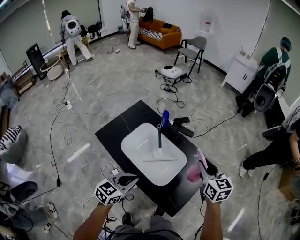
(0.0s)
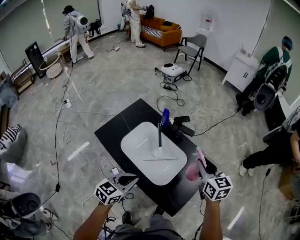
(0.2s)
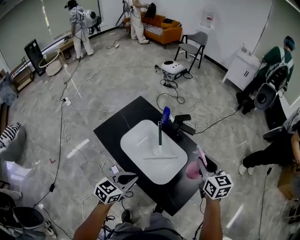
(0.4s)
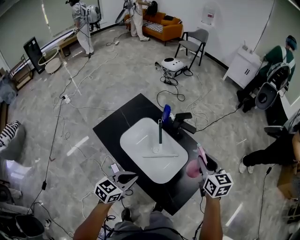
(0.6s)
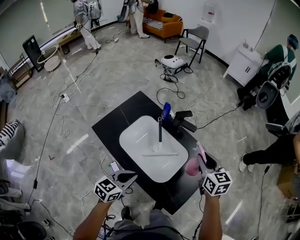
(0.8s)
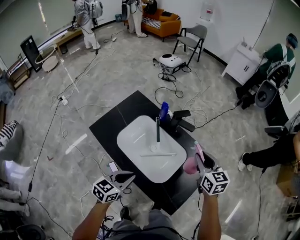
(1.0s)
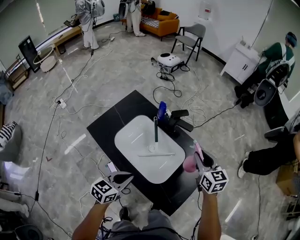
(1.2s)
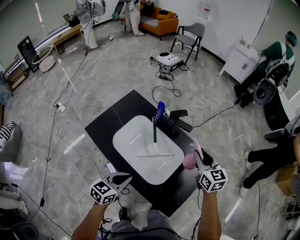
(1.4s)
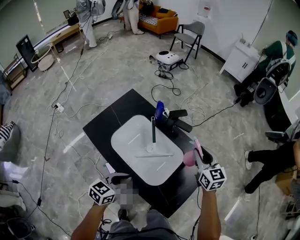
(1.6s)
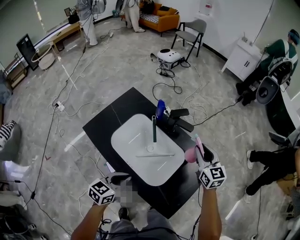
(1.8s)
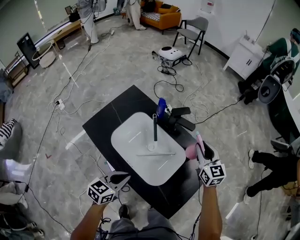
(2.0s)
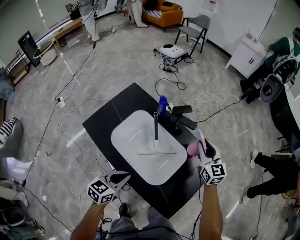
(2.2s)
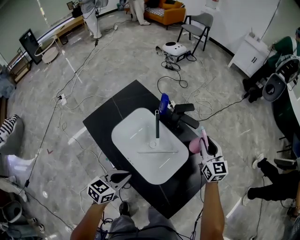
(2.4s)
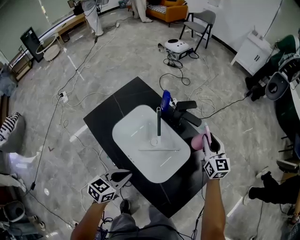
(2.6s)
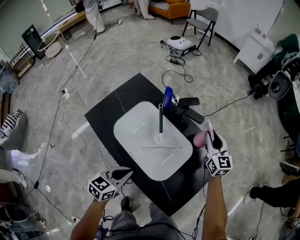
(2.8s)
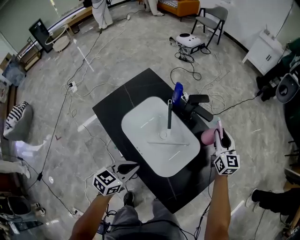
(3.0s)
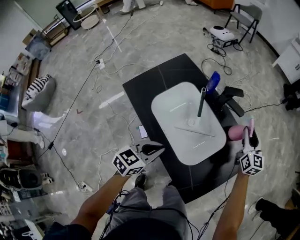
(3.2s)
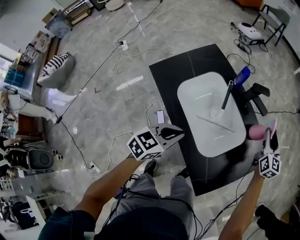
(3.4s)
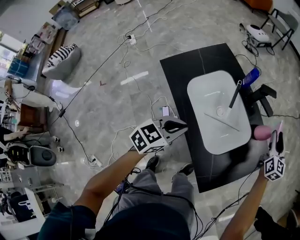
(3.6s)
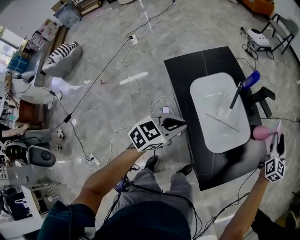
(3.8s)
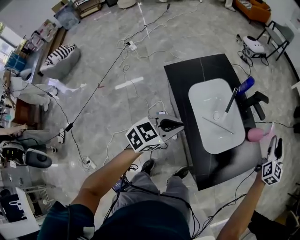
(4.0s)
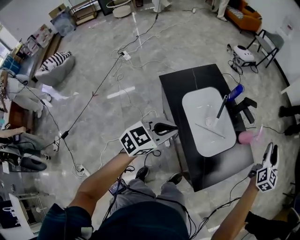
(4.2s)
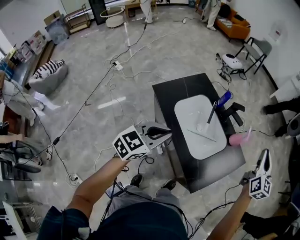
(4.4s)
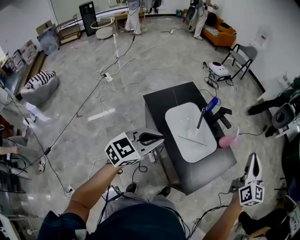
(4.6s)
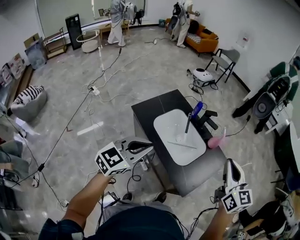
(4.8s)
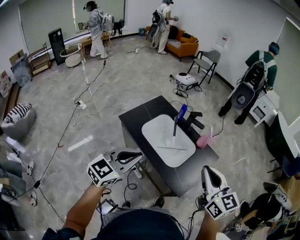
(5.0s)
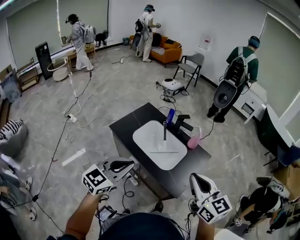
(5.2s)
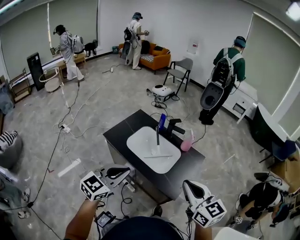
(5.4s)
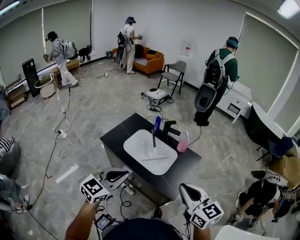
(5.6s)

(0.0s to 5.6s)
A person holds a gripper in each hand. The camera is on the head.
0.0s - 1.4s: The right gripper shifts about 10 cm forward and downward; the left gripper is displaced downward by approximately 5 cm.
1.4s - 2.8s: The left gripper moves downward, approximately 5 cm, while the right gripper travels forward and downward by roughly 15 cm.
2.8s - 4.2s: The left gripper travels upward, backward and to the left by about 20 cm; the right gripper heads upward and backward, covering roughly 20 cm.
4.2s - 5.6s: The right gripper goes approximately 40 cm backward, rotates some 20 degrees, and closes up; the left gripper is displaced backward and upward by roughly 20 cm, and changes its angle by roughly 20 degrees.

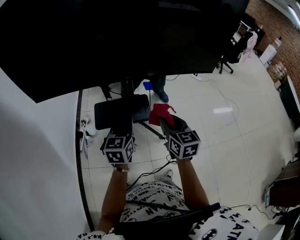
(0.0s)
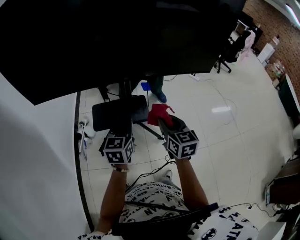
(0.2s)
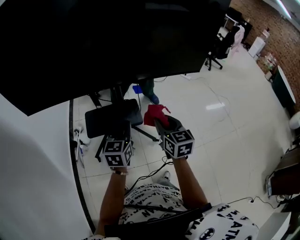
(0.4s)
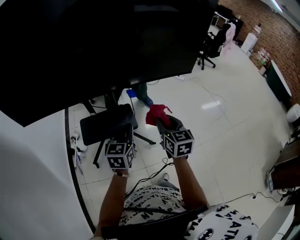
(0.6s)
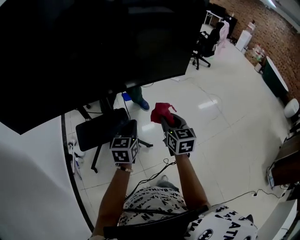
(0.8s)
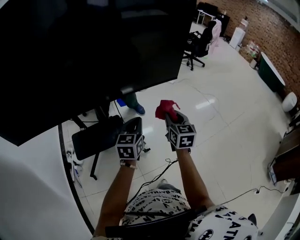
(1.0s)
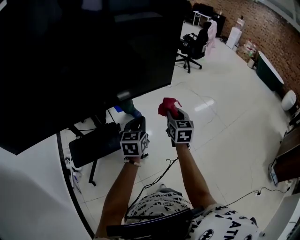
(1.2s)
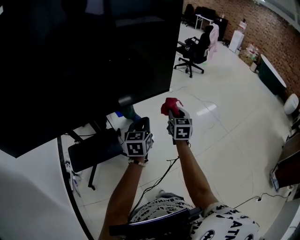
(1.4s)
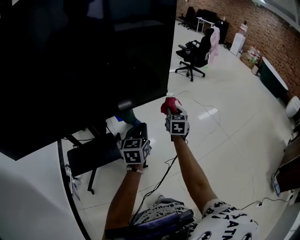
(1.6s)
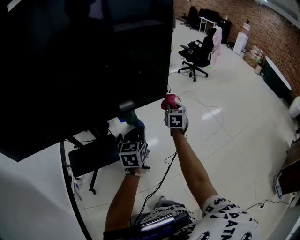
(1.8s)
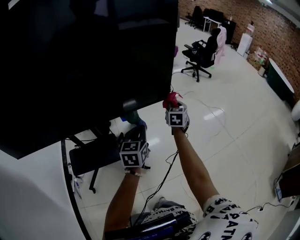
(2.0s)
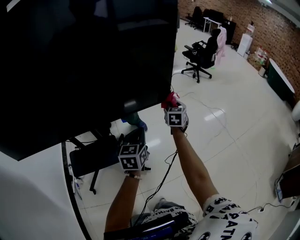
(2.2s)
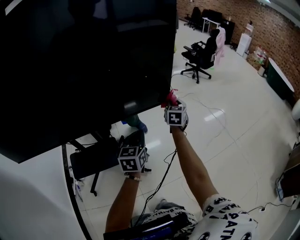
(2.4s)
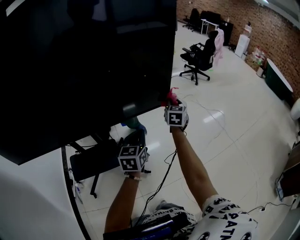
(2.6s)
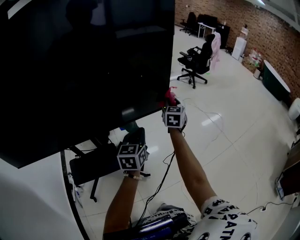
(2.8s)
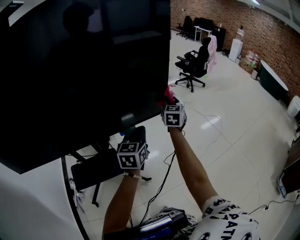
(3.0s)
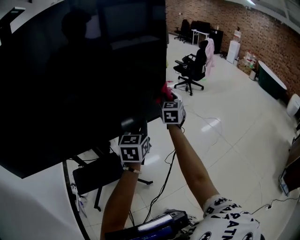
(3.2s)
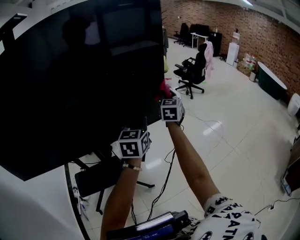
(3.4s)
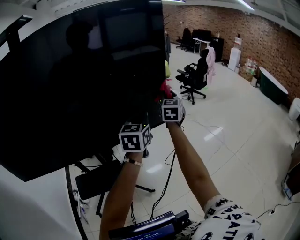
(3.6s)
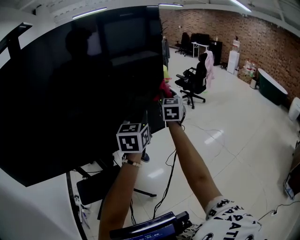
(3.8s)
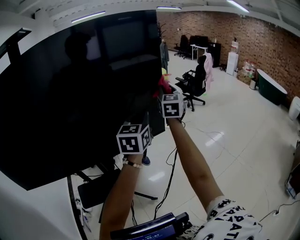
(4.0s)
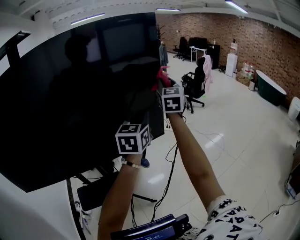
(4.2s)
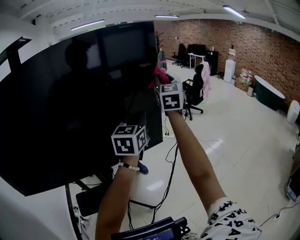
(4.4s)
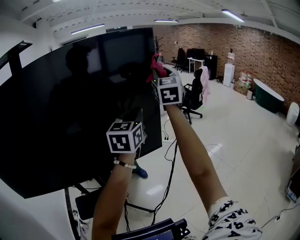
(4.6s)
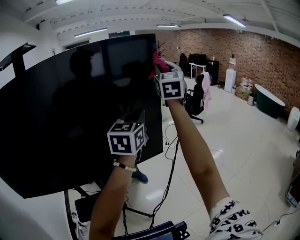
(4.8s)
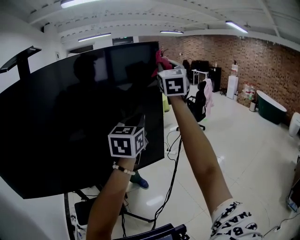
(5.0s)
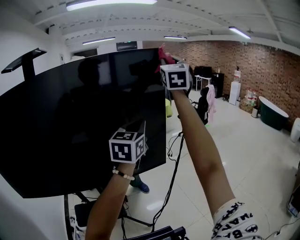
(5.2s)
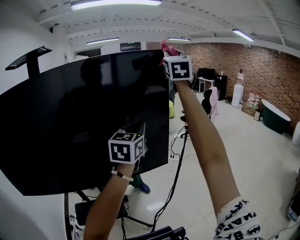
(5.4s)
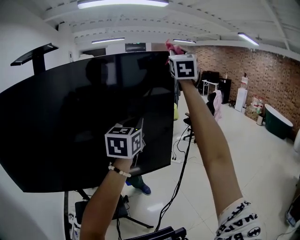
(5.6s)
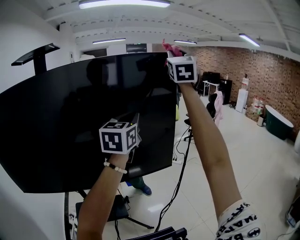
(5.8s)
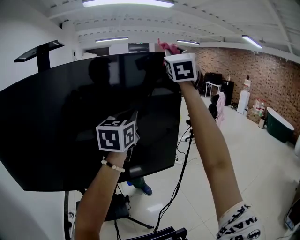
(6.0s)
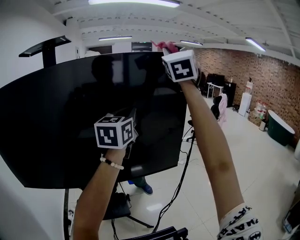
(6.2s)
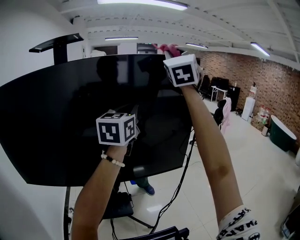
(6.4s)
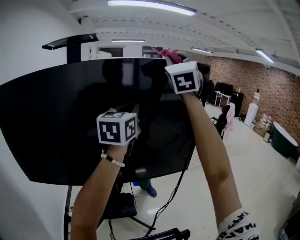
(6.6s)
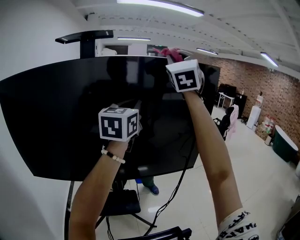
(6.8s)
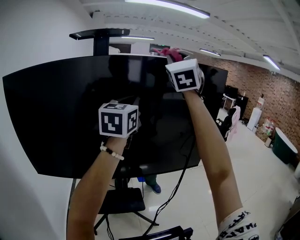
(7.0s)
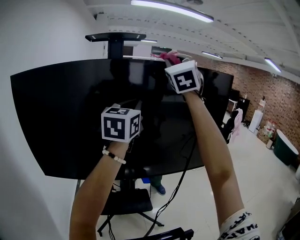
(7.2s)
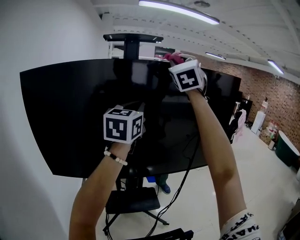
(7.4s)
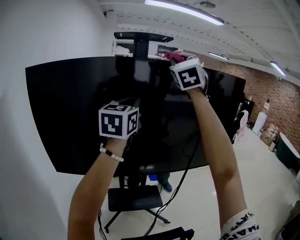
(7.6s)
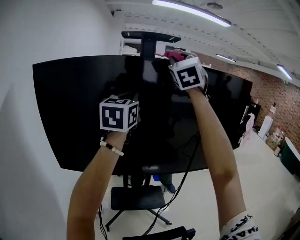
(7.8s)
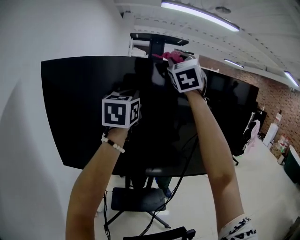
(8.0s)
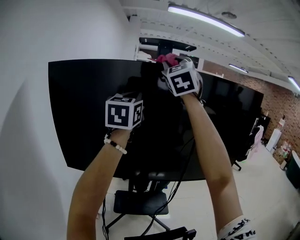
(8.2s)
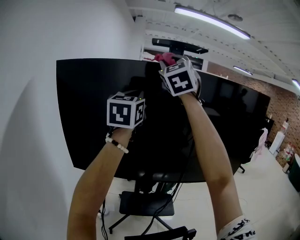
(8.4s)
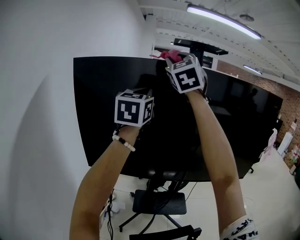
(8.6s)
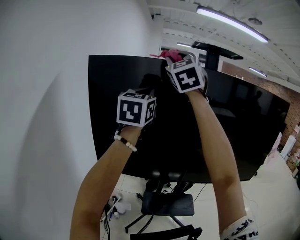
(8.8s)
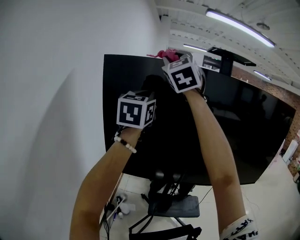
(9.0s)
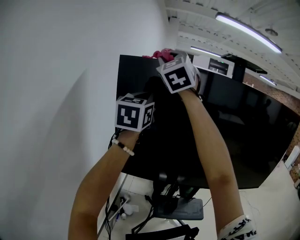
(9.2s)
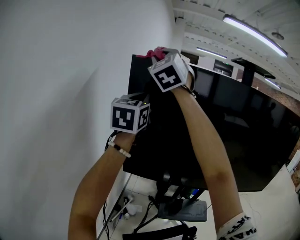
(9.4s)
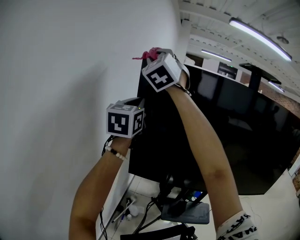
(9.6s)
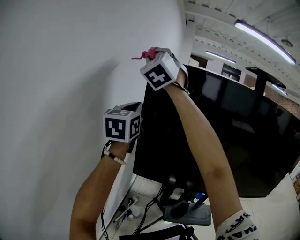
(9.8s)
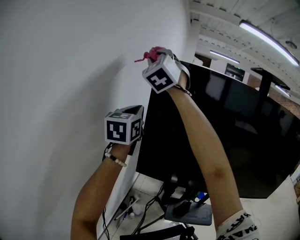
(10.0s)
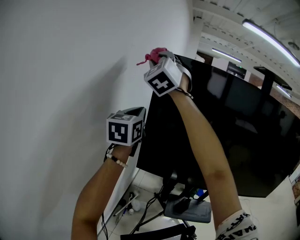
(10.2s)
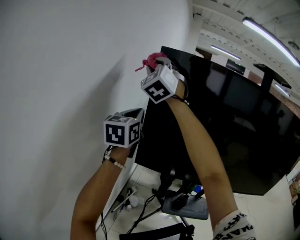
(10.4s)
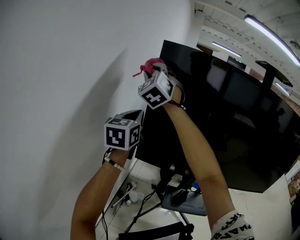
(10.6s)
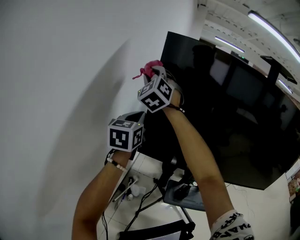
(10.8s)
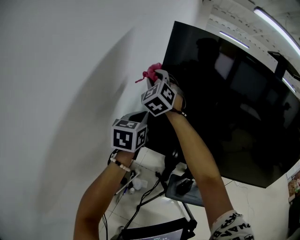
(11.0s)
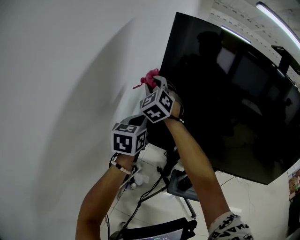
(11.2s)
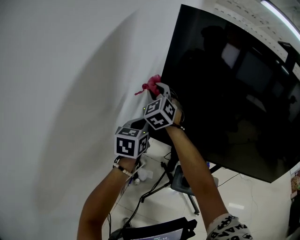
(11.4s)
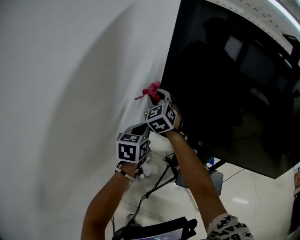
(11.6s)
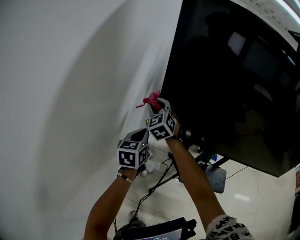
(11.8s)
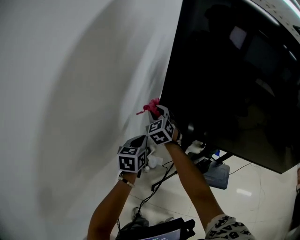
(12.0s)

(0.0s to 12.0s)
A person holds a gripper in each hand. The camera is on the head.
0.0s - 1.6s: The left gripper shifts by approximately 35 cm, while the right gripper shifts by roughly 40 cm, and turns by approximately 30 degrees.
1.6s - 3.0s: The left gripper goes approximately 5 cm upward, while the right gripper shifts some 15 cm upward and forward.
3.0s - 4.4s: The grippers both shift upward by roughly 25 cm. The right gripper changes its angle by about 20 degrees.
4.4s - 6.0s: The right gripper moves upward, approximately 25 cm, while the left gripper shifts about 15 cm upward and to the left.
6.0s - 7.6s: The two grippers travel together, to the left, roughly 40 cm.
7.6s - 9.0s: Both grippers move to the left, some 35 cm. The right gripper turns by approximately 20 degrees.
9.0s - 10.4s: The grippers both shift to the left and downward by about 25 cm.
10.4s - 12.0s: The grippers both shift downward by some 40 cm. The right gripper swivels roughly 30 degrees; the left gripper changes its angle by approximately 30 degrees.

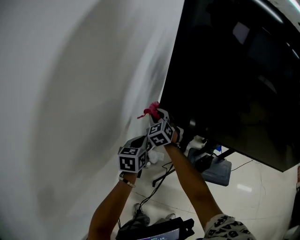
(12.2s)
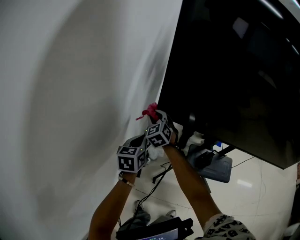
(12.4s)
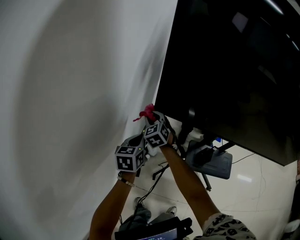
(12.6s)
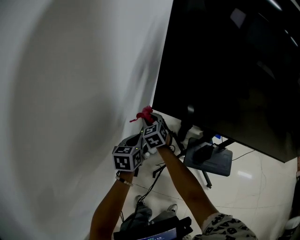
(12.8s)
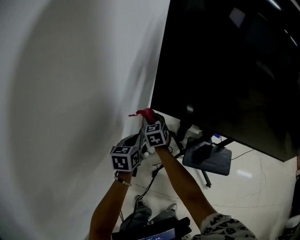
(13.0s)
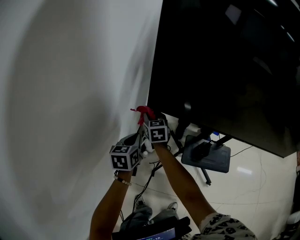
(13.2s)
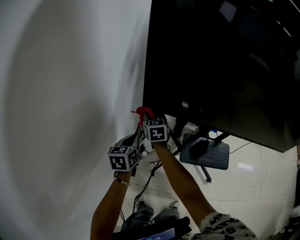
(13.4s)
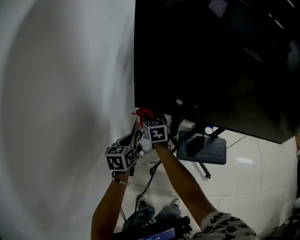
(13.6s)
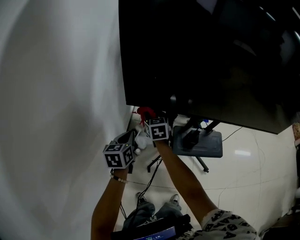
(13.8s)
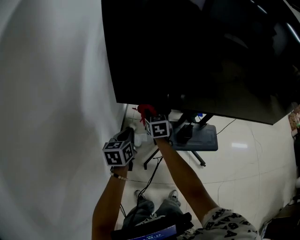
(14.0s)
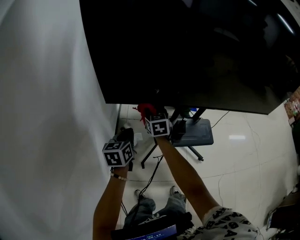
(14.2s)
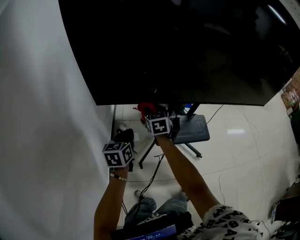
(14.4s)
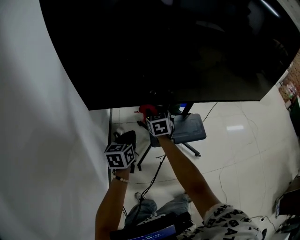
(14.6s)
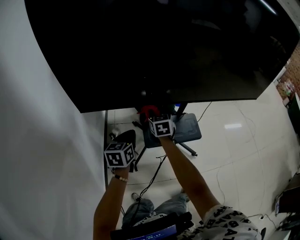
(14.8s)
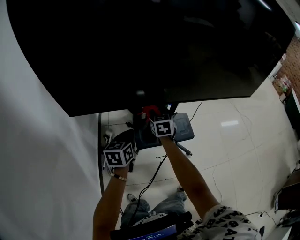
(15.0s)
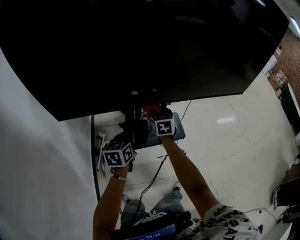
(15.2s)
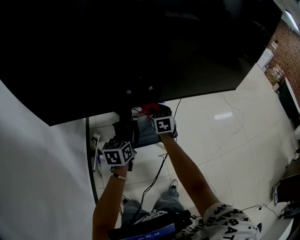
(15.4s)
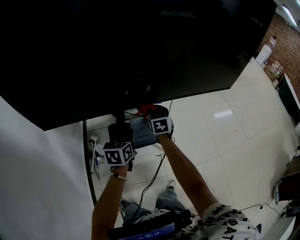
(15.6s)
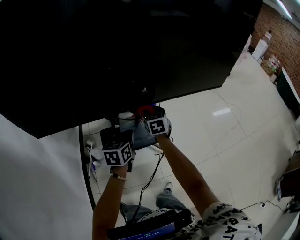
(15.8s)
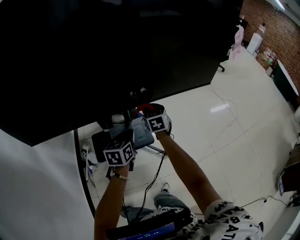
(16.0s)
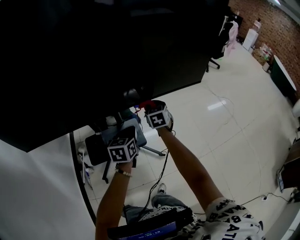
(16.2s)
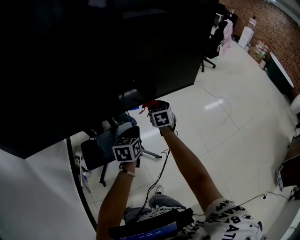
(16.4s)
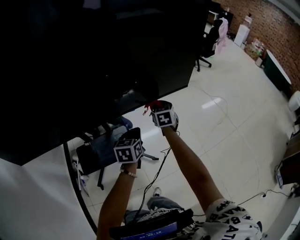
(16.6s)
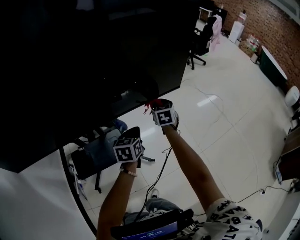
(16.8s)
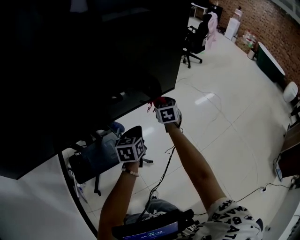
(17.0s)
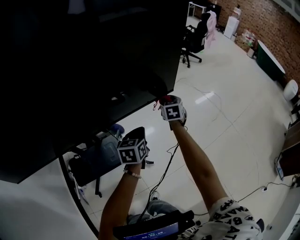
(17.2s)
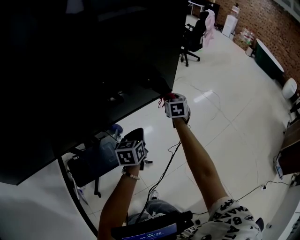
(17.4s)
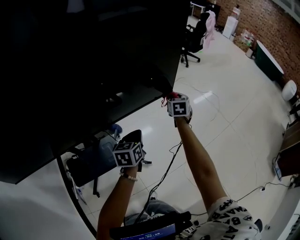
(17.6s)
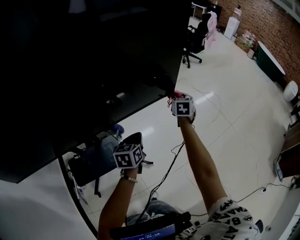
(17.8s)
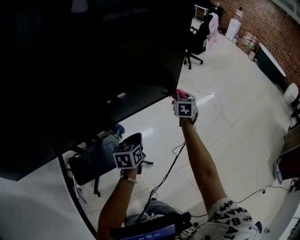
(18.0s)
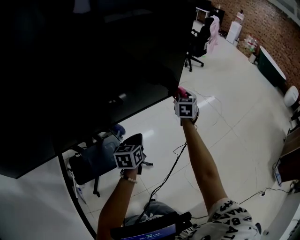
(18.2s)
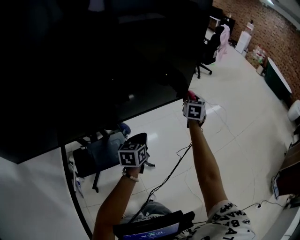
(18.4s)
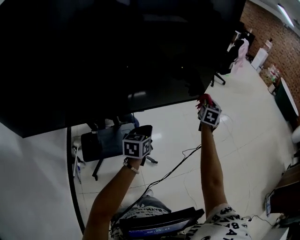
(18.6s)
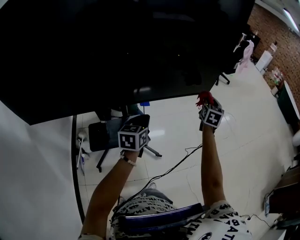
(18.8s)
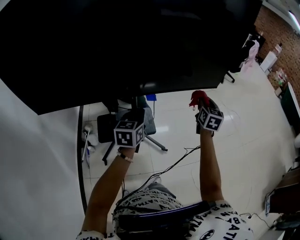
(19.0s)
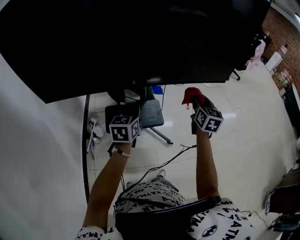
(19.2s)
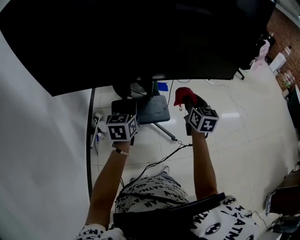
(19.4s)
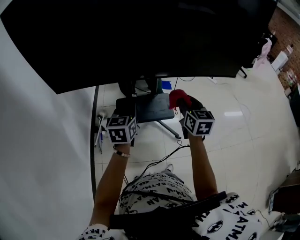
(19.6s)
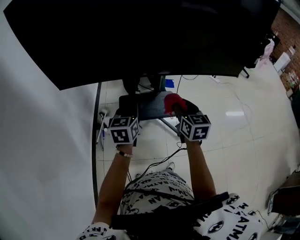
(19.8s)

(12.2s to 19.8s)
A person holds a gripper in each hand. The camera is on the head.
12.2s - 13.8s: The left gripper moves to the right, approximately 5 cm; the right gripper heads to the right and downward, covering approximately 15 cm, and turns by some 40 degrees.
13.8s - 15.2s: Both grippers travel together to the right, approximately 35 cm. The left gripper rotates approximately 20 degrees; the right gripper changes its angle by approximately 20 degrees.
15.2s - 16.8s: The two grippers travel together, to the right and forward, approximately 50 cm.
16.8s - 18.2s: The right gripper travels to the right and forward by roughly 20 cm.
18.2s - 19.8s: Both grippers are carried roughly 50 cm. The right gripper swivels about 40 degrees. Meanwhile the left gripper swivels roughly 30 degrees.
